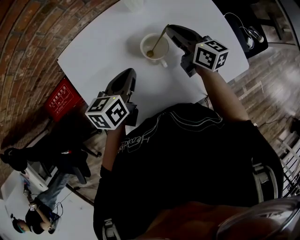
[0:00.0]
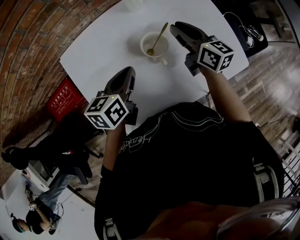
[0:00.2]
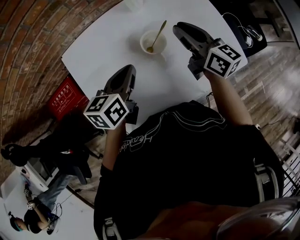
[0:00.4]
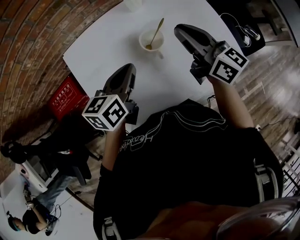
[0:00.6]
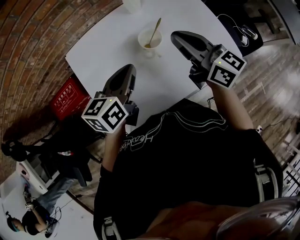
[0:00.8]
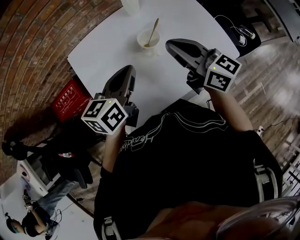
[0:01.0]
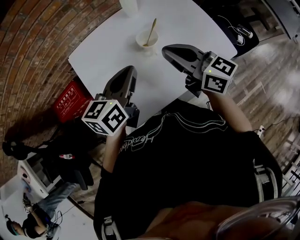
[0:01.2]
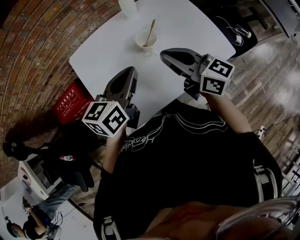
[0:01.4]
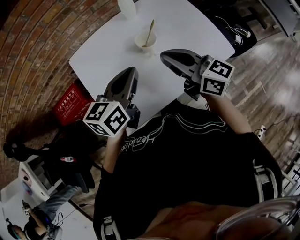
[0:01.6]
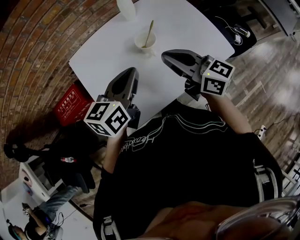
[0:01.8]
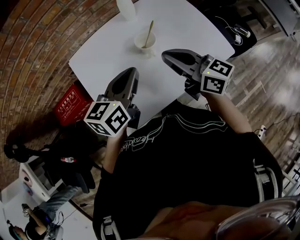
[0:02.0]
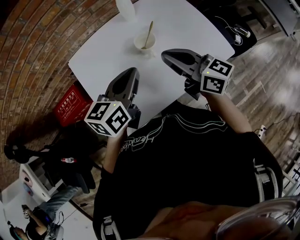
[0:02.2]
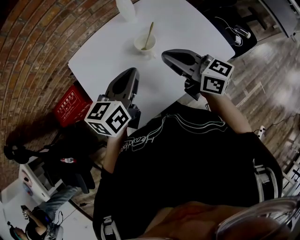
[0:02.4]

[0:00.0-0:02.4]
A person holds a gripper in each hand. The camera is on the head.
0:00.0 to 0:01.2: The right gripper is displaced backward and upward by some 25 cm; the left gripper travels upward and backward by approximately 15 cm.
0:01.2 to 0:02.4: The grippers stay close to where they were, moving slightly.

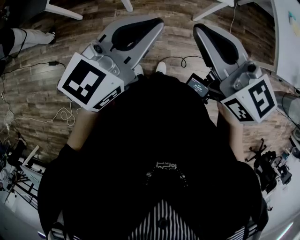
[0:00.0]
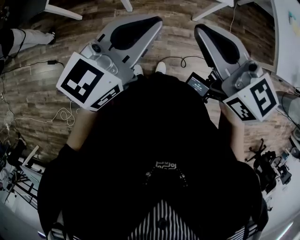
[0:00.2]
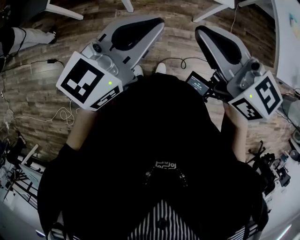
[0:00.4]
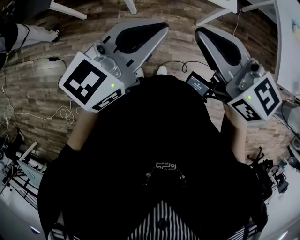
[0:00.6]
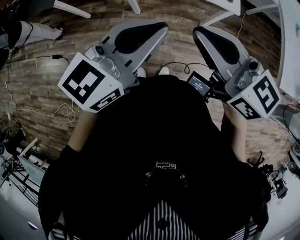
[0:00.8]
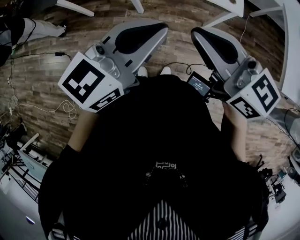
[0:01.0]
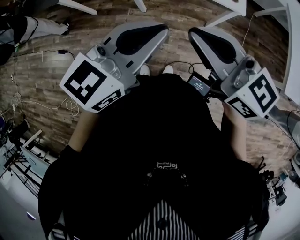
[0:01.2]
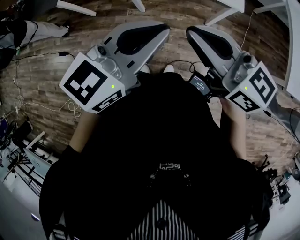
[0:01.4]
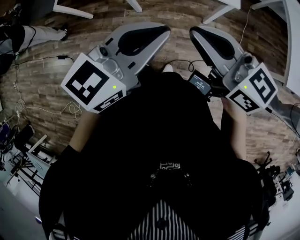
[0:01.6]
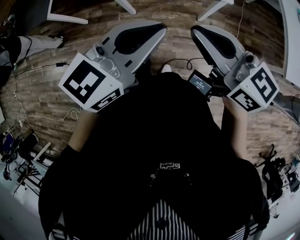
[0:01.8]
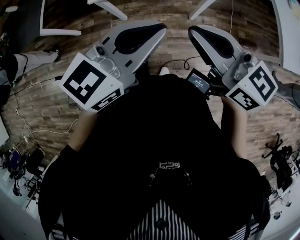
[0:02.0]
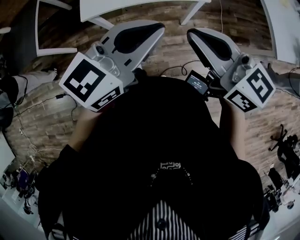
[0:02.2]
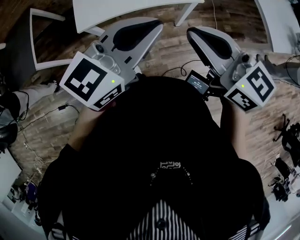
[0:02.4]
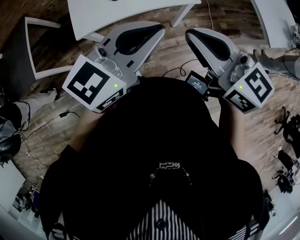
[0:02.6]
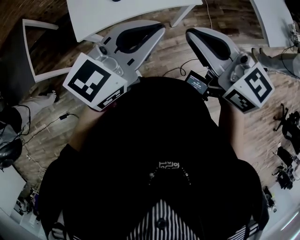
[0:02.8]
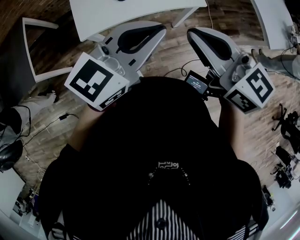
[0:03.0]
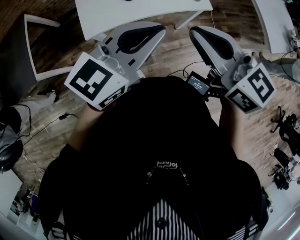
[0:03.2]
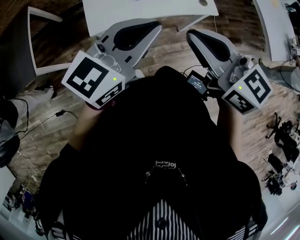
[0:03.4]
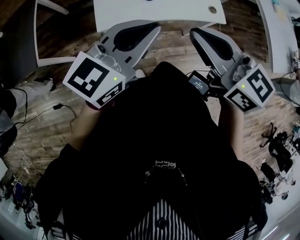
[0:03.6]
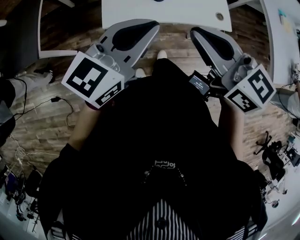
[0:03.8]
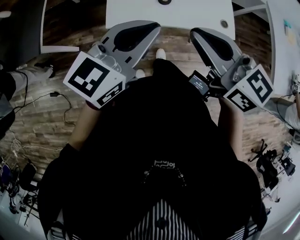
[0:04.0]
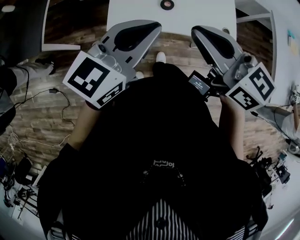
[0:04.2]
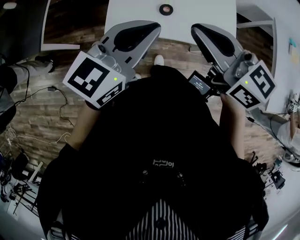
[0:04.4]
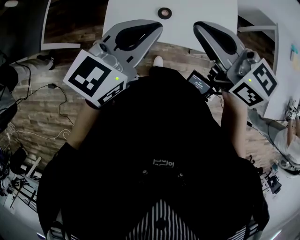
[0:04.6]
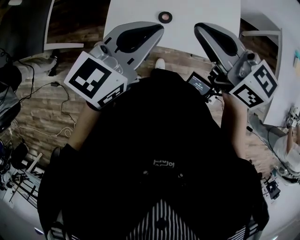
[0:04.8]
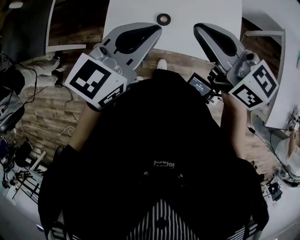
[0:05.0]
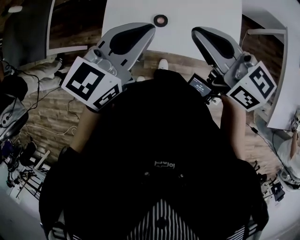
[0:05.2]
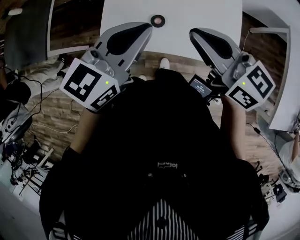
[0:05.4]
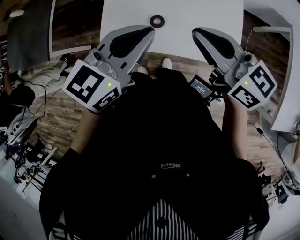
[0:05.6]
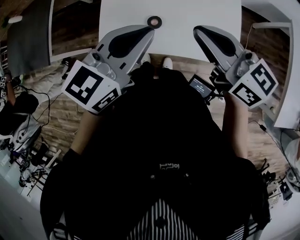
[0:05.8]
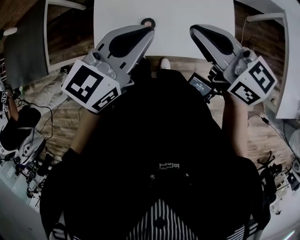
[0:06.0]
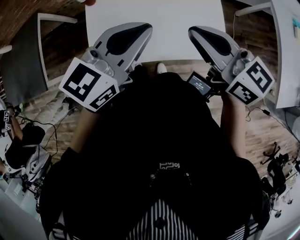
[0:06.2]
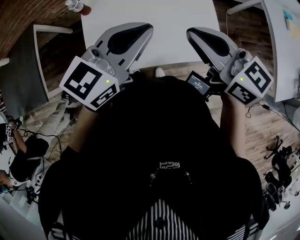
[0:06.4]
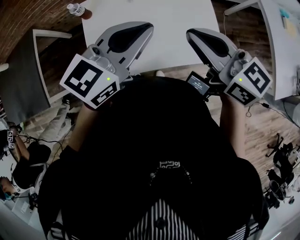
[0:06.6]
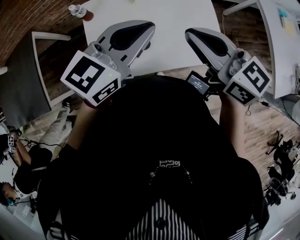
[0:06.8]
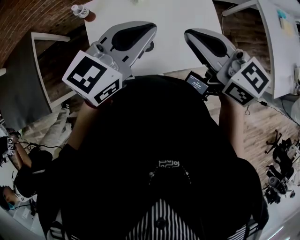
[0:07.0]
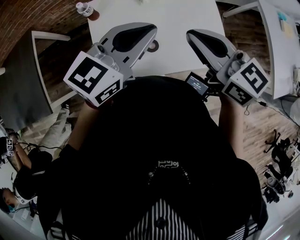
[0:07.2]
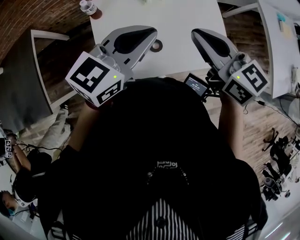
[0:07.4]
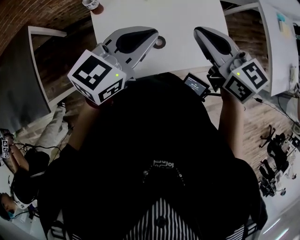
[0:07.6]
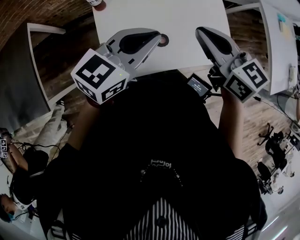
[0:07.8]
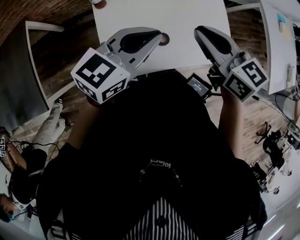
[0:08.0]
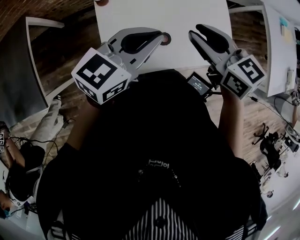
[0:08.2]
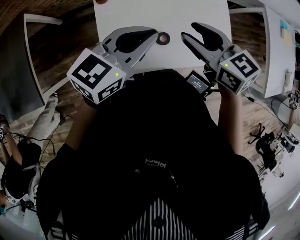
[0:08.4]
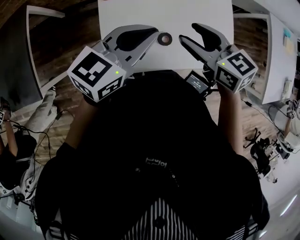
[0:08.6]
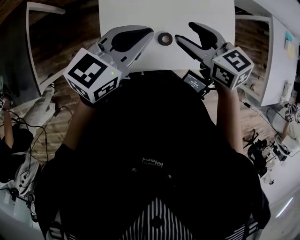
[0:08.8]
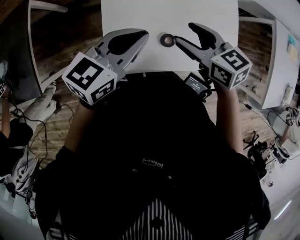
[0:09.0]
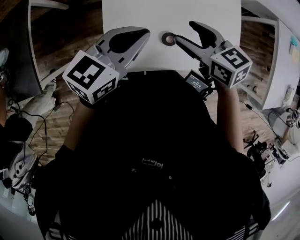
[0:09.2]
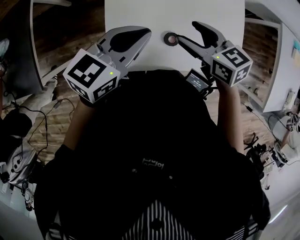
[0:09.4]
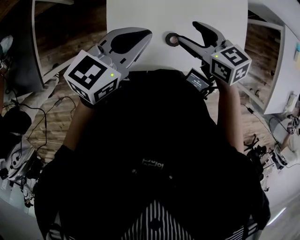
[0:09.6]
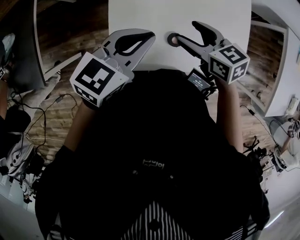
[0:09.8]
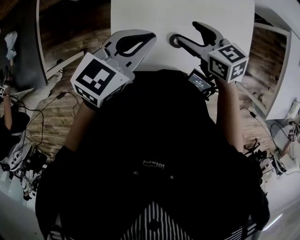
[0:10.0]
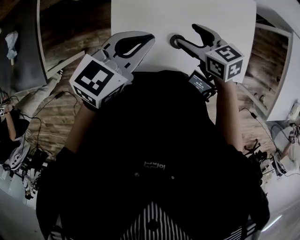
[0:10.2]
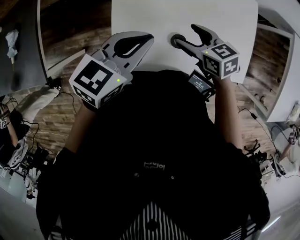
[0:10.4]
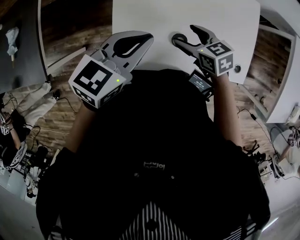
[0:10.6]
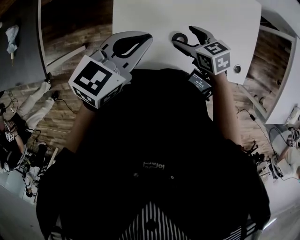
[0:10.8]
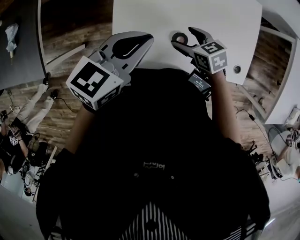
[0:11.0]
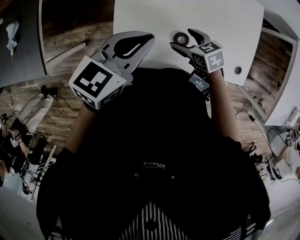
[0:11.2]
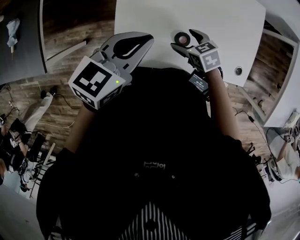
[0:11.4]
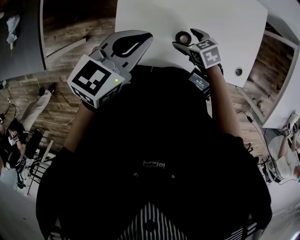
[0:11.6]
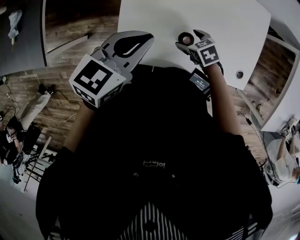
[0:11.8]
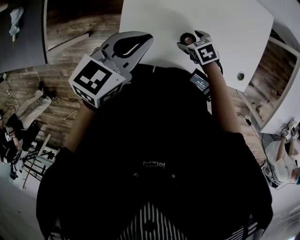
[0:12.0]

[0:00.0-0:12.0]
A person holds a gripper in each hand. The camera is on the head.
0:00.0 to 0:01.6: The two grippers go about 10 cm to the right.
0:01.6 to 0:03.0: The right gripper travels upward and forward by approximately 15 cm, and changes its angle by about 30 degrees. The left gripper is displaced forward and upward by approximately 15 cm, and rotates about 20 degrees.
0:03.0 to 0:04.4: The grippers both shift forward, to the left and downward by about 25 cm. The right gripper rotates some 20 degrees. Meanwhile the left gripper swivels about 30 degrees.
0:04.4 to 0:06.0: The right gripper moves to the right and forward, approximately 20 cm. Meanwhile the left gripper goes roughly 15 cm forward and to the right.
0:06.0 to 0:07.6: The right gripper turns by about 20 degrees. The left gripper shifts about 5 cm downward.
0:07.6 to 0:09.0: The left gripper goes some 5 cm to the left; the right gripper shifts some 10 cm downward and to the left, swivels roughly 20 degrees, and opens up.
0:09.0 to 0:10.4: The right gripper is displaced downward by some 10 cm. The left gripper changes place by some 5 cm.
0:10.4 to 0:12.0: The right gripper shifts about 15 cm downward, and turns by about 30 degrees.

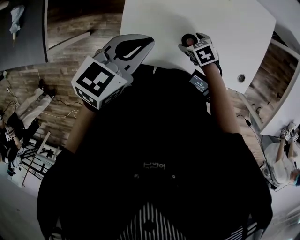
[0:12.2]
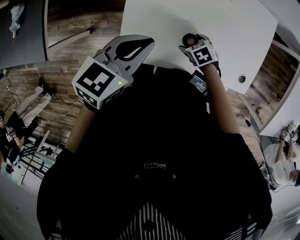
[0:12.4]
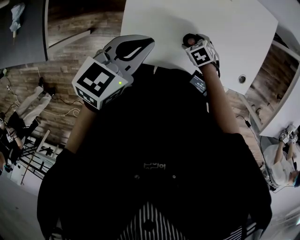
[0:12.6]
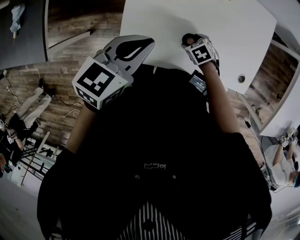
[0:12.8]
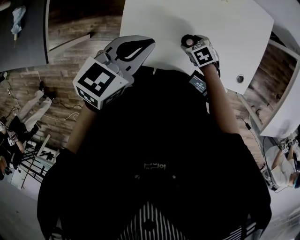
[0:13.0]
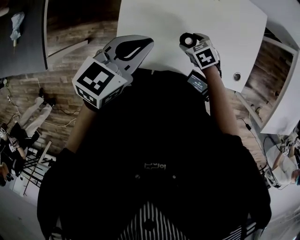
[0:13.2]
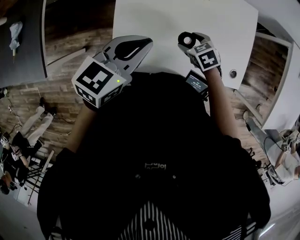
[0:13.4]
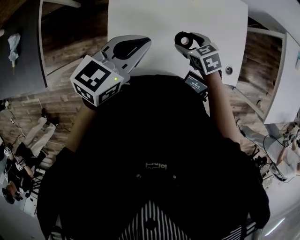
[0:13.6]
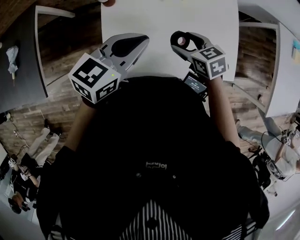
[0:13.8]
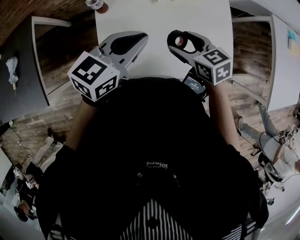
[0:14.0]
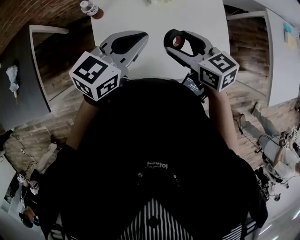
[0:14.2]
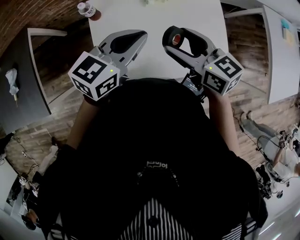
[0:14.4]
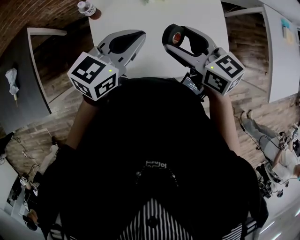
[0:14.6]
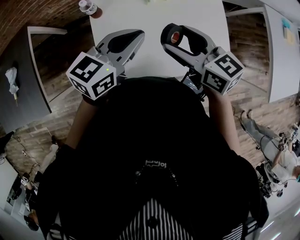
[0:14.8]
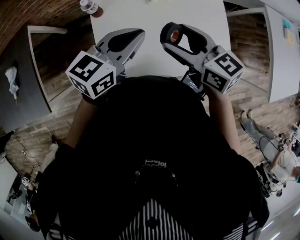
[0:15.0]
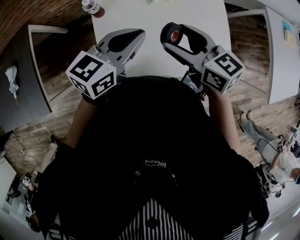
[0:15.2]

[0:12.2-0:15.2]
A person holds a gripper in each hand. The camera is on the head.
0:12.2 to 0:13.8: The right gripper travels upward by some 20 cm, and changes its angle by roughly 30 degrees; the left gripper changes place by about 5 cm.
0:13.8 to 0:15.2: The right gripper travels upward by about 15 cm, and turns by approximately 30 degrees.

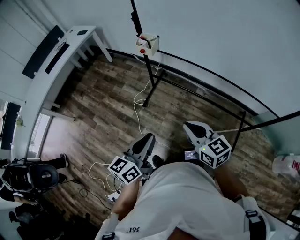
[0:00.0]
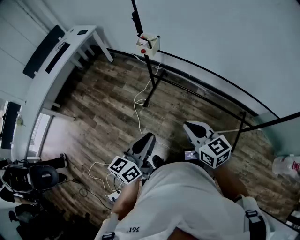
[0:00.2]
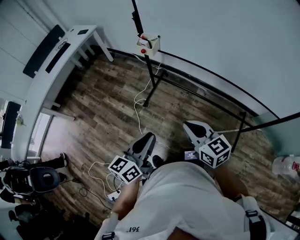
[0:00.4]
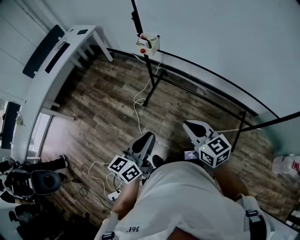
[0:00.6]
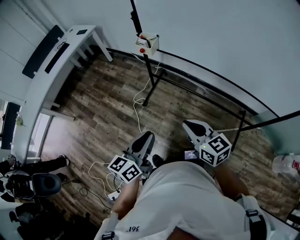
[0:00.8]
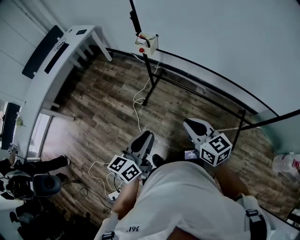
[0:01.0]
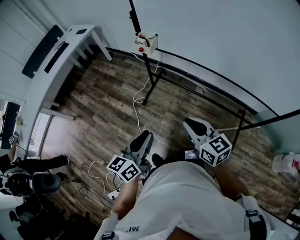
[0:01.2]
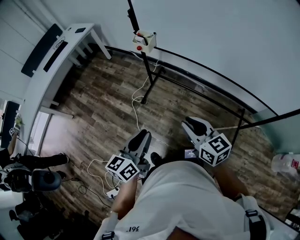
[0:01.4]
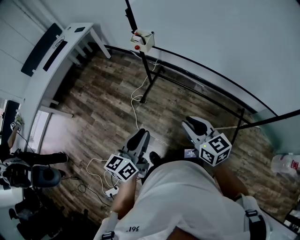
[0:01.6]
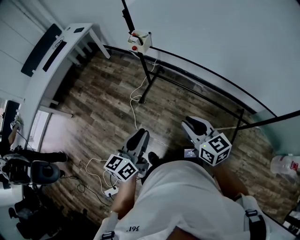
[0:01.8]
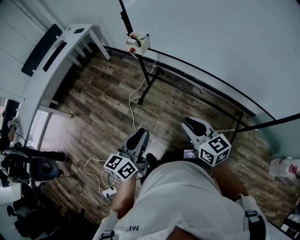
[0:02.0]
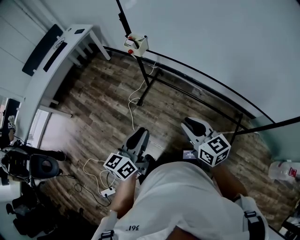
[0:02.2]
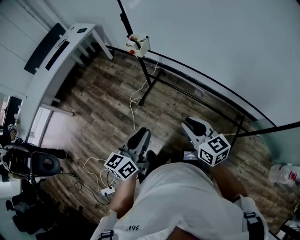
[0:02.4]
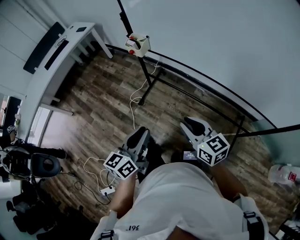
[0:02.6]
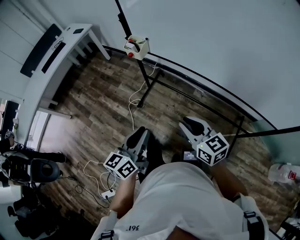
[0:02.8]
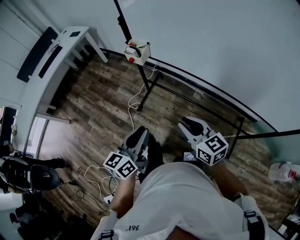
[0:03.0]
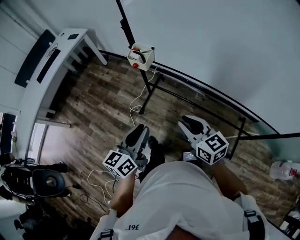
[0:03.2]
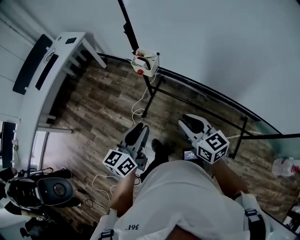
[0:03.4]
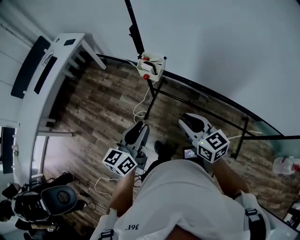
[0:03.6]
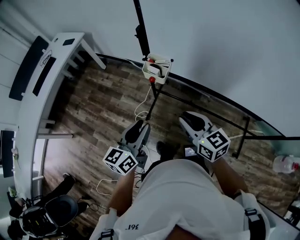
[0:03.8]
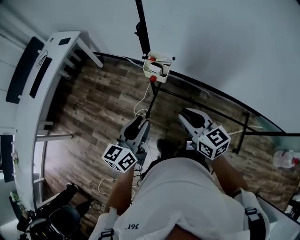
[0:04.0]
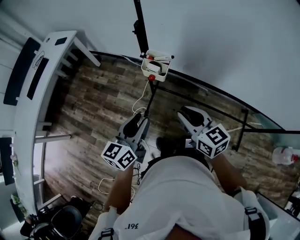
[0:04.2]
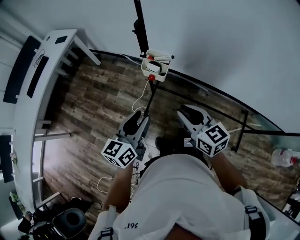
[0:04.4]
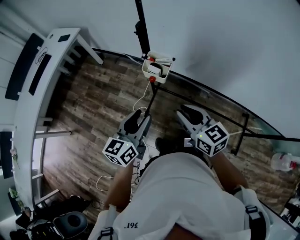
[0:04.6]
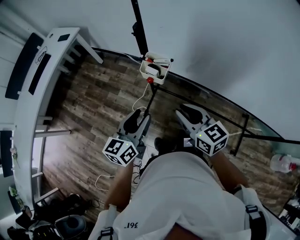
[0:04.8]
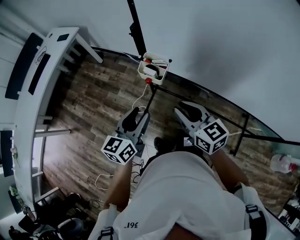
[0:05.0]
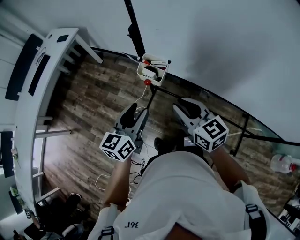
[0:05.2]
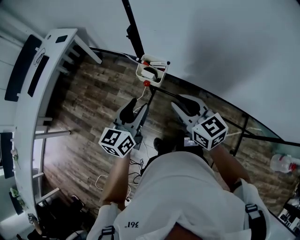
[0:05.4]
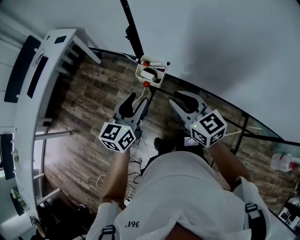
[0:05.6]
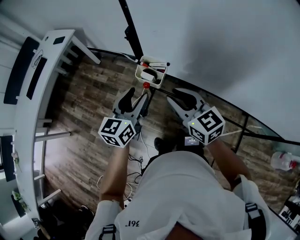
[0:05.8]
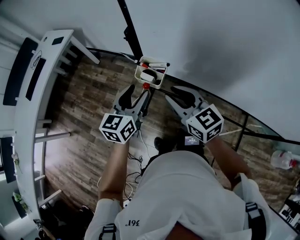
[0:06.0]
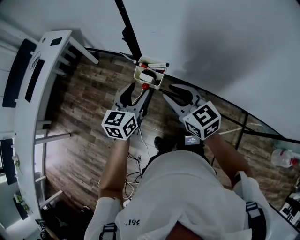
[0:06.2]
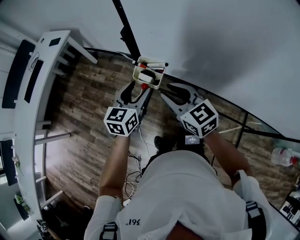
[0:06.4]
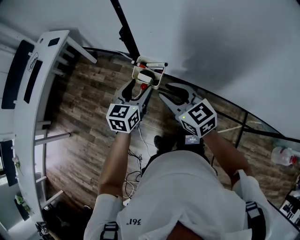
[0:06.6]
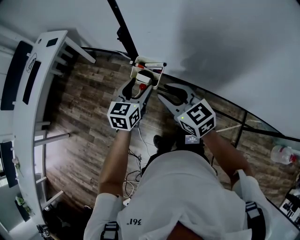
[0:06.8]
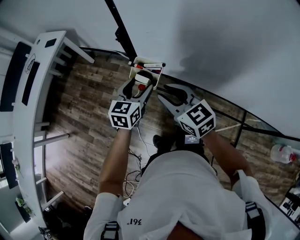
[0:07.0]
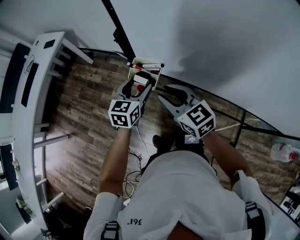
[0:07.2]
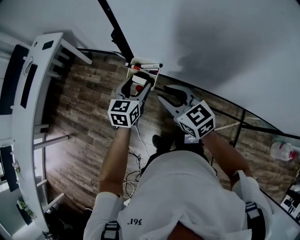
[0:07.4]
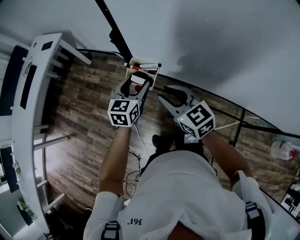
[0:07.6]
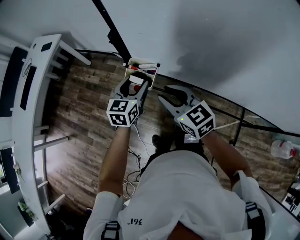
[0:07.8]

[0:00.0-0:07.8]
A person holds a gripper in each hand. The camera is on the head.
0:00.0 to 0:01.6: There are only small adjustments of the grippers.
0:01.6 to 0:03.2: The grippers both shift forward by some 15 cm.
0:03.2 to 0:04.6: Both grippers move forward and to the left, about 20 cm.
0:04.6 to 0:06.2: Both grippers travel together forward, roughly 10 cm.
0:06.2 to 0:07.8: The left gripper is displaced forward and downward by roughly 5 cm.
